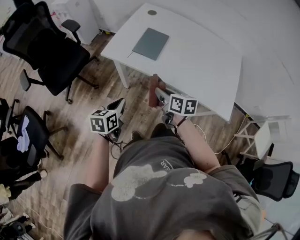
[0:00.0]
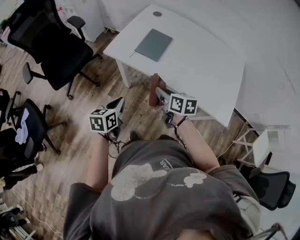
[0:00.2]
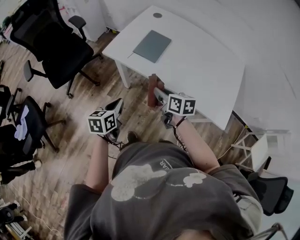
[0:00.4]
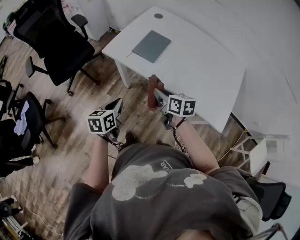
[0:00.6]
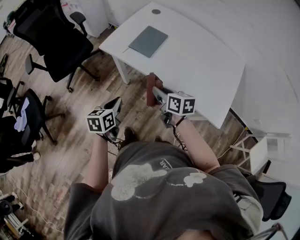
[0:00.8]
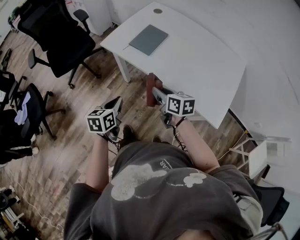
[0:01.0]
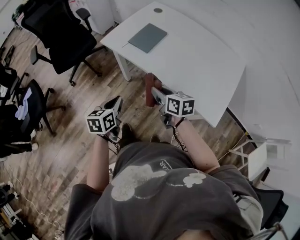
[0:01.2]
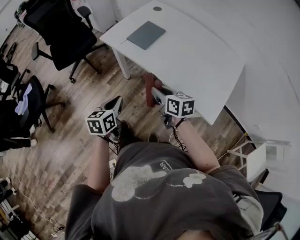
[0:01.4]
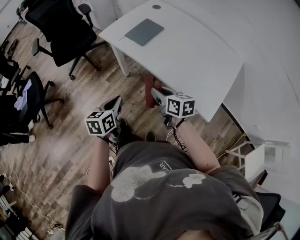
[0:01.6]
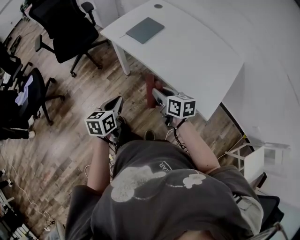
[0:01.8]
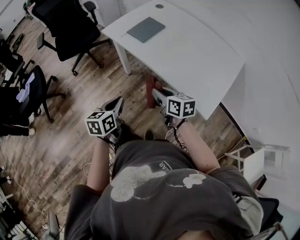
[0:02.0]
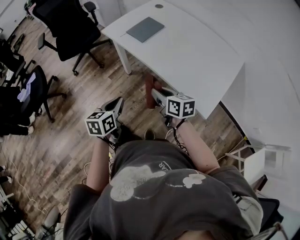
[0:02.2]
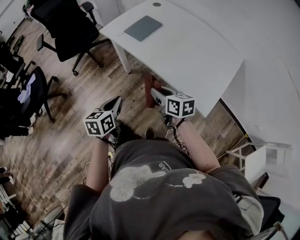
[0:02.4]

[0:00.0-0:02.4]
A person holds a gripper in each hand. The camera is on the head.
0:00.0 to 0:01.2: Both grippers travel together to the right and backward, some 10 cm.
0:01.2 to 0:02.4: The grippers both shift backward and to the right by approximately 15 cm.

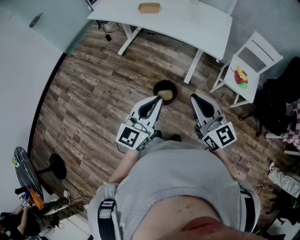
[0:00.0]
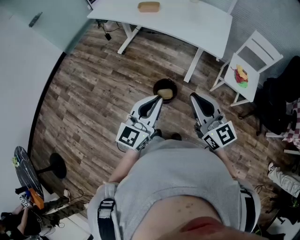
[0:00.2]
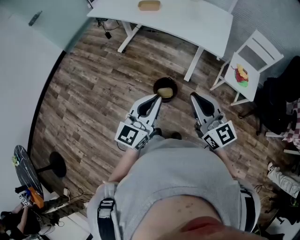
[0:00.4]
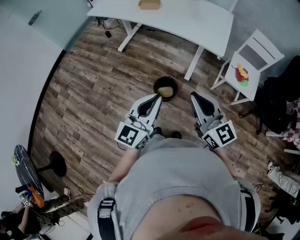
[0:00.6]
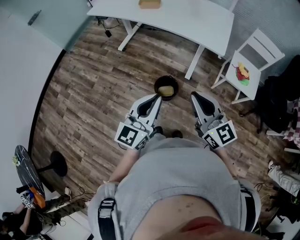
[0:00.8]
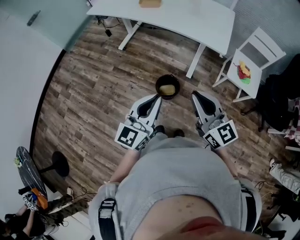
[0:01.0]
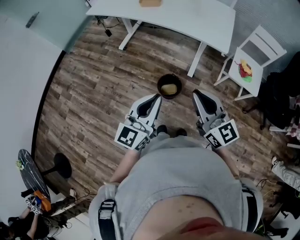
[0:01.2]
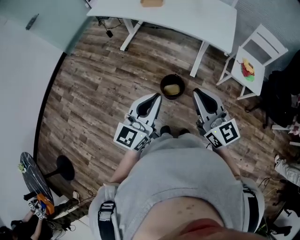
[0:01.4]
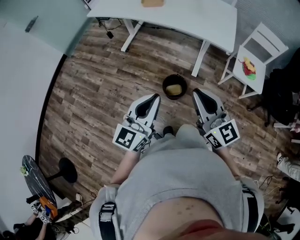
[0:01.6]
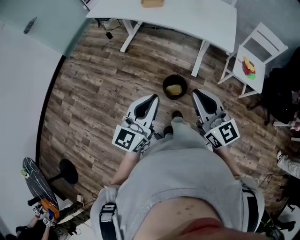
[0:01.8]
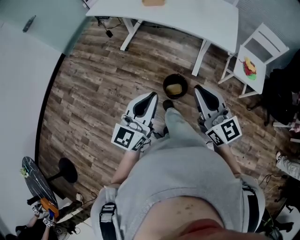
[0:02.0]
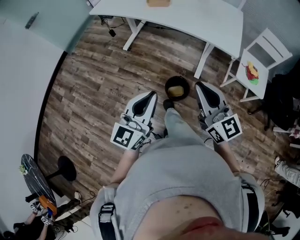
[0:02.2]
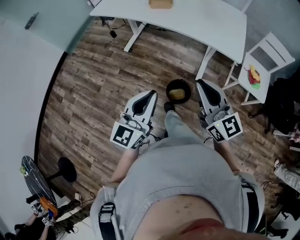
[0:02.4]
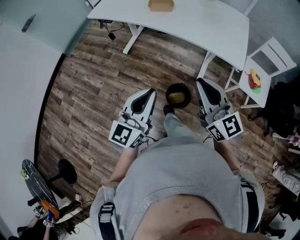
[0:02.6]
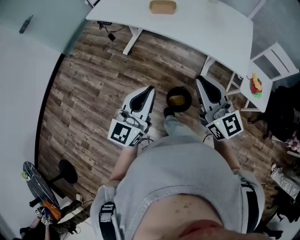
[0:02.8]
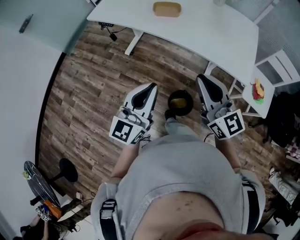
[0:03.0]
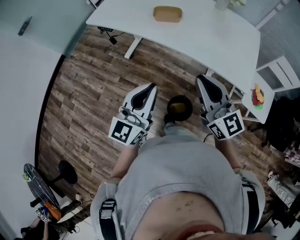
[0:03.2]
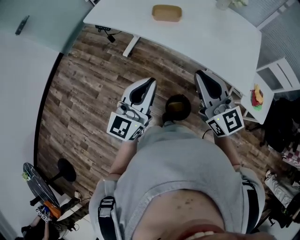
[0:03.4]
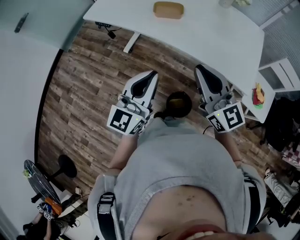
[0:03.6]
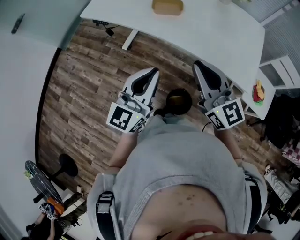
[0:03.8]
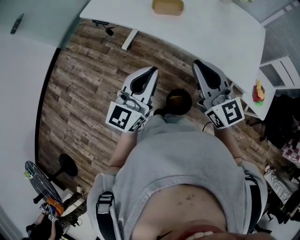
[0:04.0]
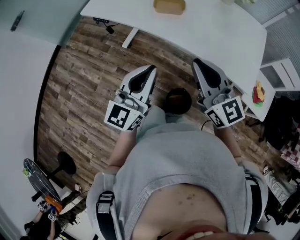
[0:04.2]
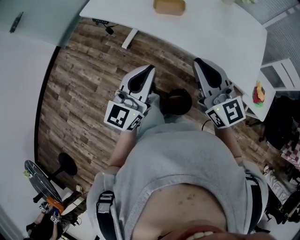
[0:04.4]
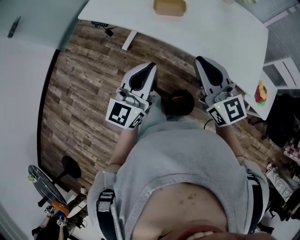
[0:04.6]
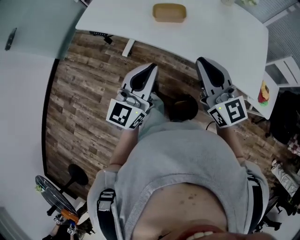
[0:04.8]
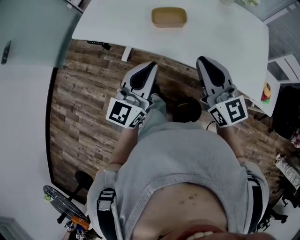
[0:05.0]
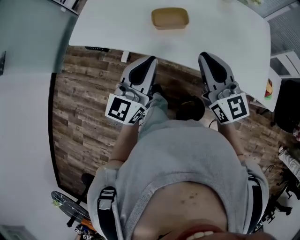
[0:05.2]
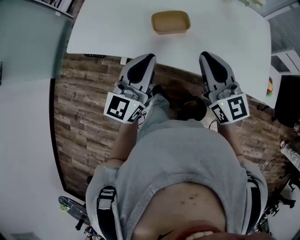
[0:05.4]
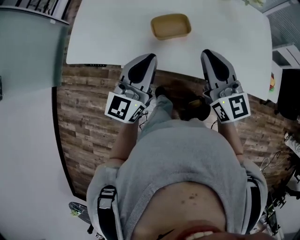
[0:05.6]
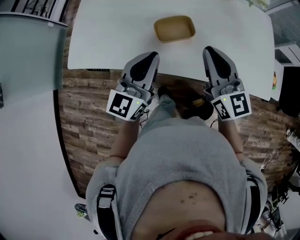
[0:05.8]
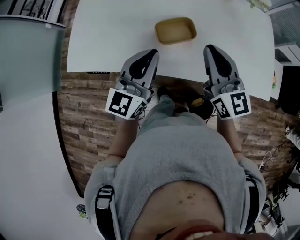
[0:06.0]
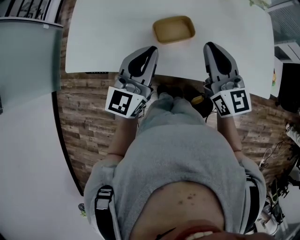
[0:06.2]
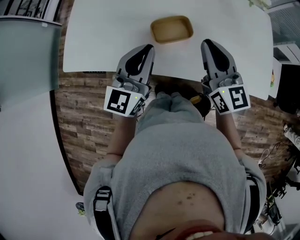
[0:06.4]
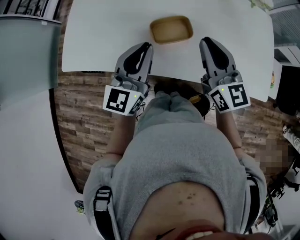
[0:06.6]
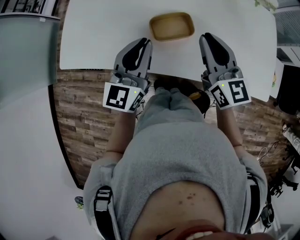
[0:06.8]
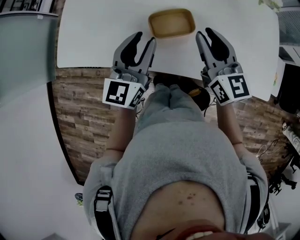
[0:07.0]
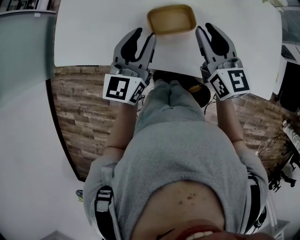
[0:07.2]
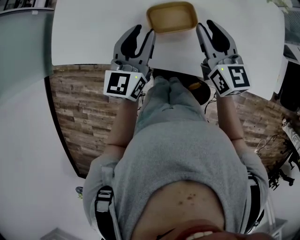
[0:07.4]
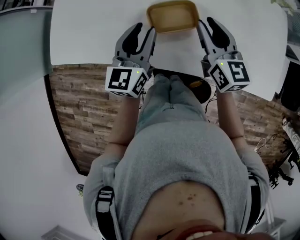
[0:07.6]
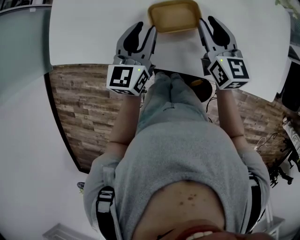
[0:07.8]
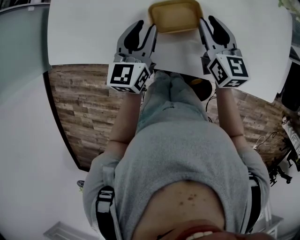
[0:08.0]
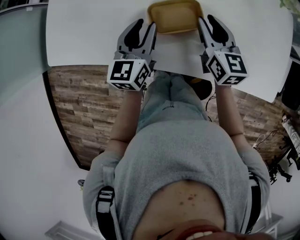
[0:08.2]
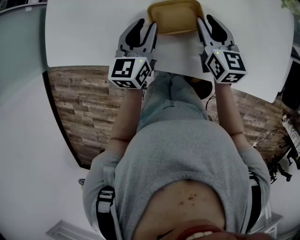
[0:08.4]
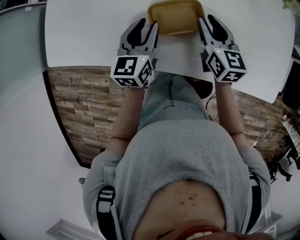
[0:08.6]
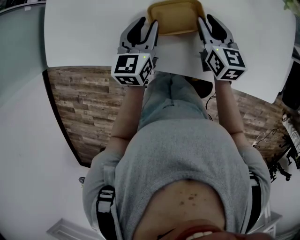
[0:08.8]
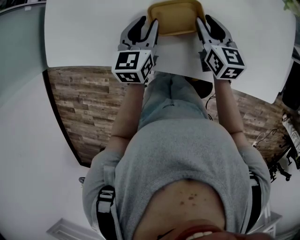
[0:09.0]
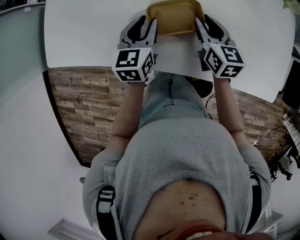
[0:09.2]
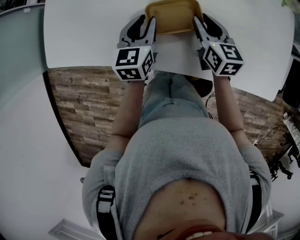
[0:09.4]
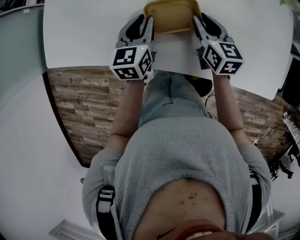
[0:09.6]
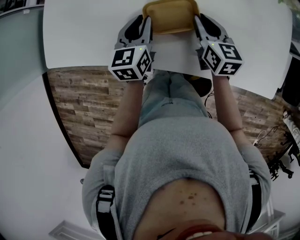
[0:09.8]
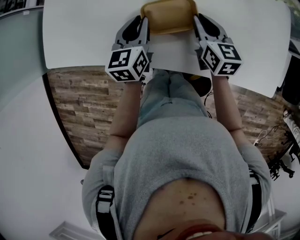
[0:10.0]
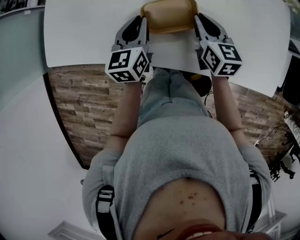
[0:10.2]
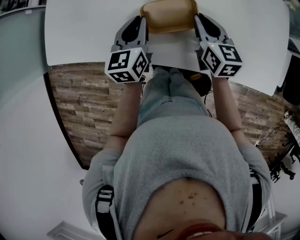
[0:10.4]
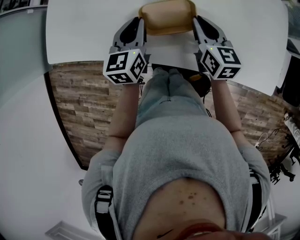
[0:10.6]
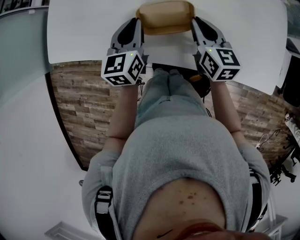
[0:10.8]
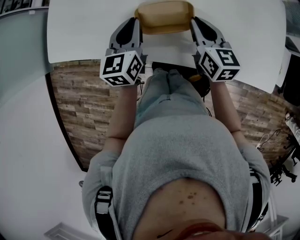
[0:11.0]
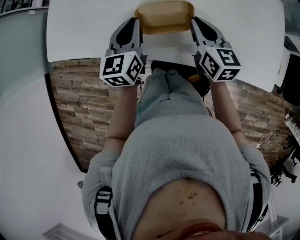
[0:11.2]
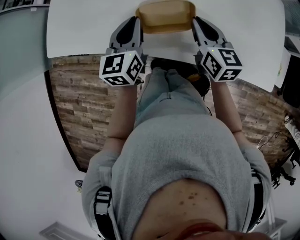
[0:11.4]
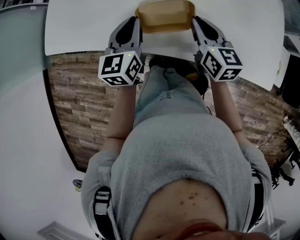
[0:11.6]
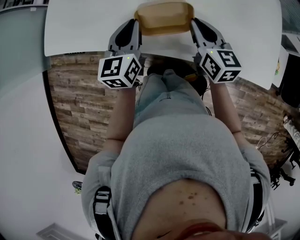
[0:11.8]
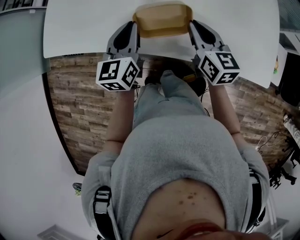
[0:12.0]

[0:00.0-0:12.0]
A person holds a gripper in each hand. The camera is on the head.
0:00.0 to 0:01.6: Both grippers travel together to the left, about 10 cm.
0:01.6 to 0:03.0: The two grippers go some 25 cm forward.
0:03.0 to 0:04.4: The grippers both shift forward by approximately 10 cm.
0:04.4 to 0:06.0: Both grippers travel together forward, about 30 cm. The right gripper turns by roughly 30 degrees. The left gripper swivels some 20 degrees.
0:06.0 to 0:07.6: The grippers both shift downward and forward by roughly 15 cm. The left gripper opens up. The right gripper opens.
0:07.6 to 0:09.0: The two grippers go roughly 10 cm downward.
0:09.0 to 0:10.4: The grippers move only a little.
0:10.4 to 0:12.0: Both grippers travel together backward, roughly 5 cm.

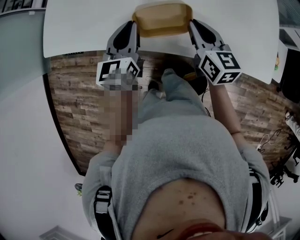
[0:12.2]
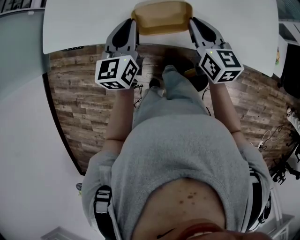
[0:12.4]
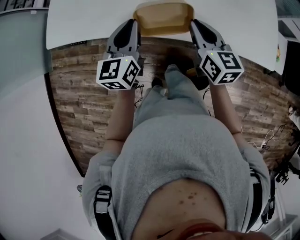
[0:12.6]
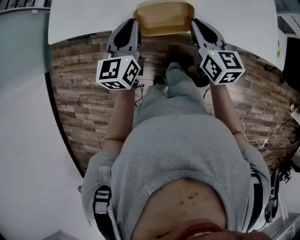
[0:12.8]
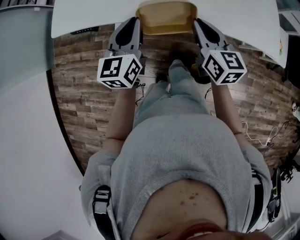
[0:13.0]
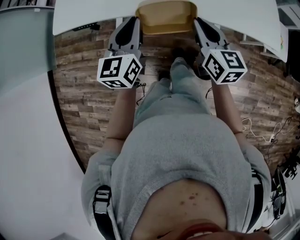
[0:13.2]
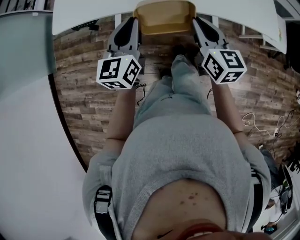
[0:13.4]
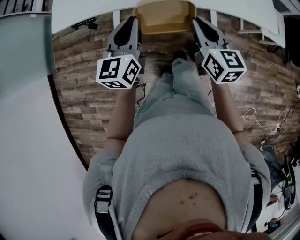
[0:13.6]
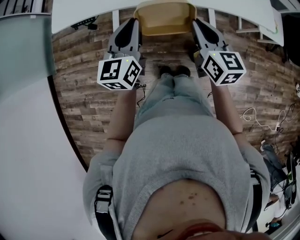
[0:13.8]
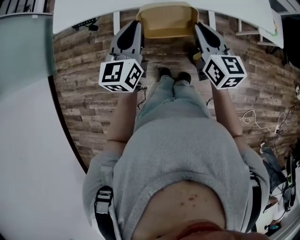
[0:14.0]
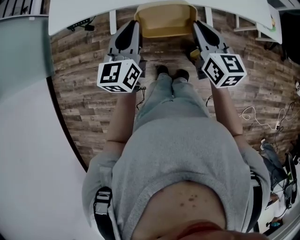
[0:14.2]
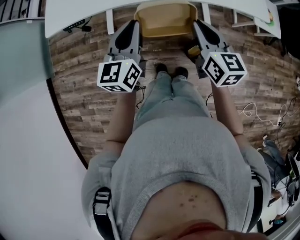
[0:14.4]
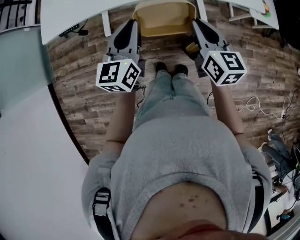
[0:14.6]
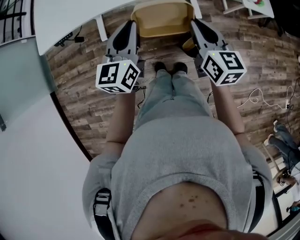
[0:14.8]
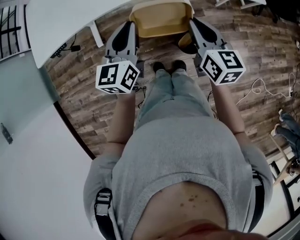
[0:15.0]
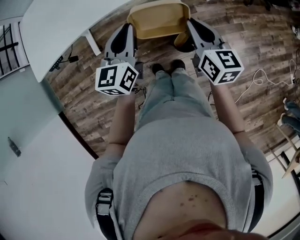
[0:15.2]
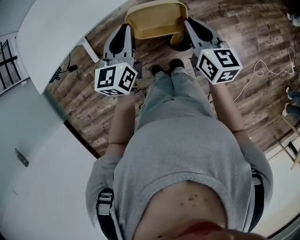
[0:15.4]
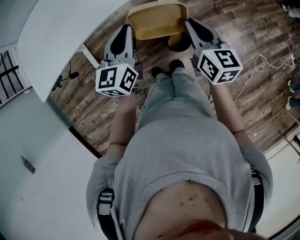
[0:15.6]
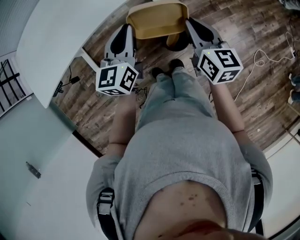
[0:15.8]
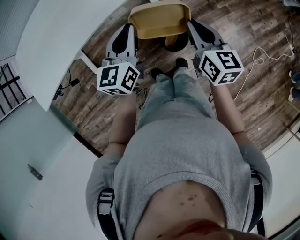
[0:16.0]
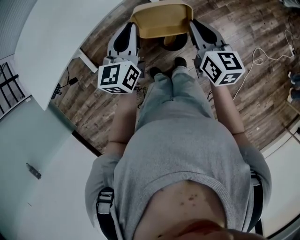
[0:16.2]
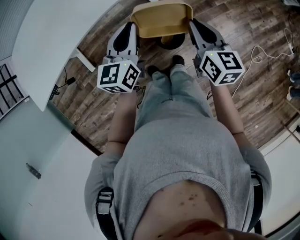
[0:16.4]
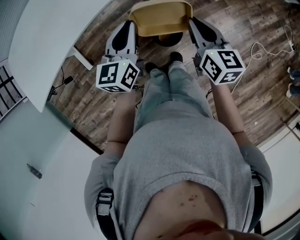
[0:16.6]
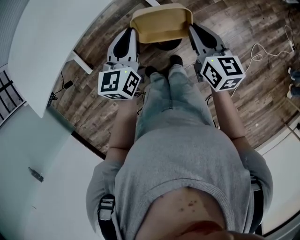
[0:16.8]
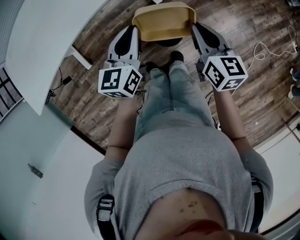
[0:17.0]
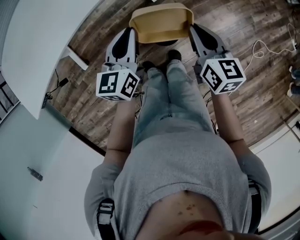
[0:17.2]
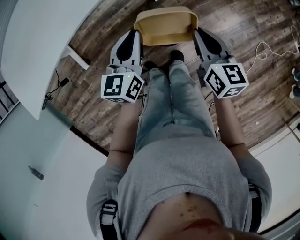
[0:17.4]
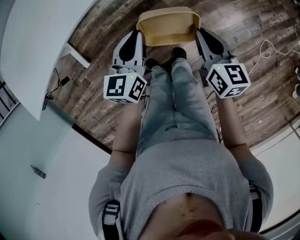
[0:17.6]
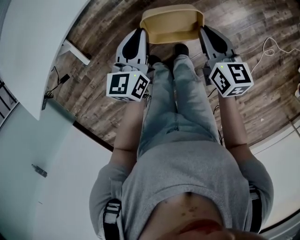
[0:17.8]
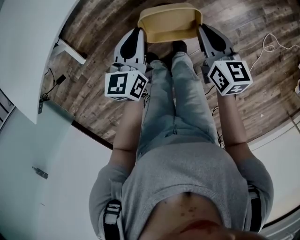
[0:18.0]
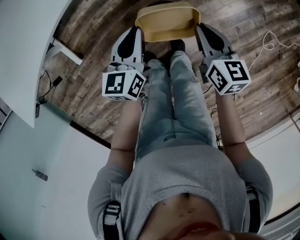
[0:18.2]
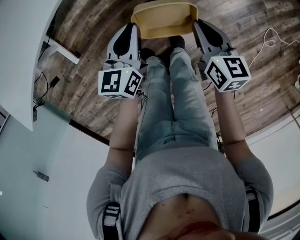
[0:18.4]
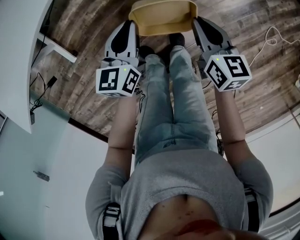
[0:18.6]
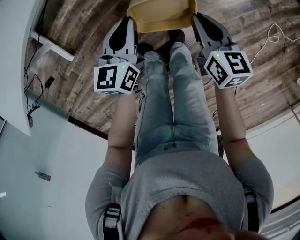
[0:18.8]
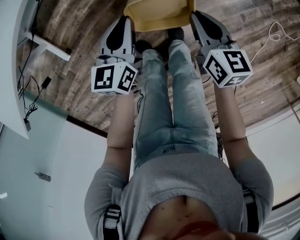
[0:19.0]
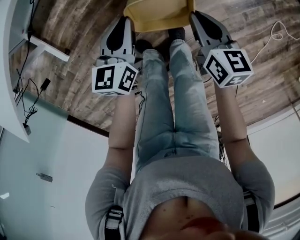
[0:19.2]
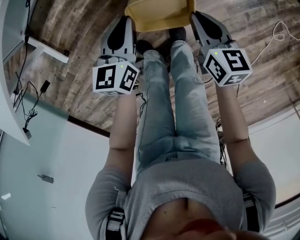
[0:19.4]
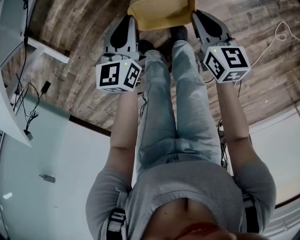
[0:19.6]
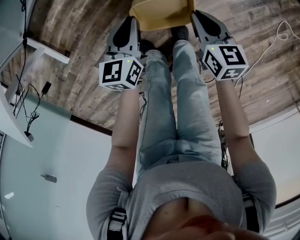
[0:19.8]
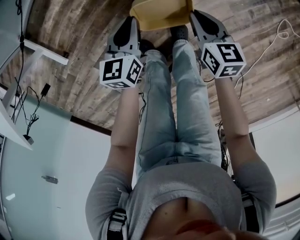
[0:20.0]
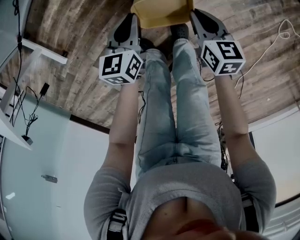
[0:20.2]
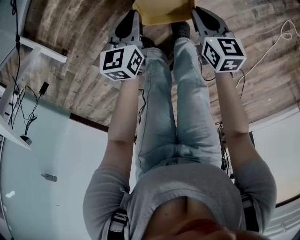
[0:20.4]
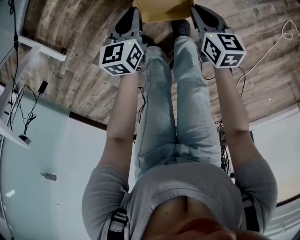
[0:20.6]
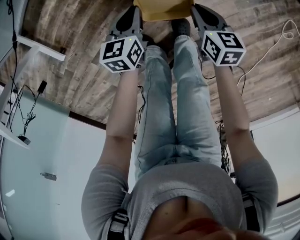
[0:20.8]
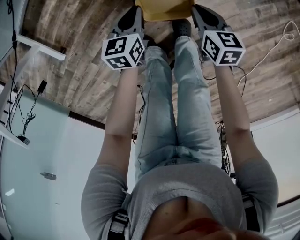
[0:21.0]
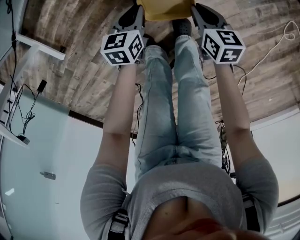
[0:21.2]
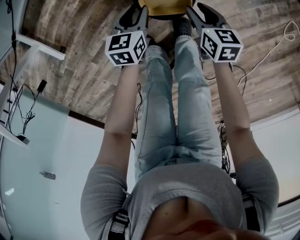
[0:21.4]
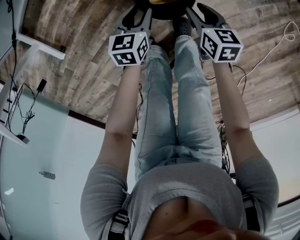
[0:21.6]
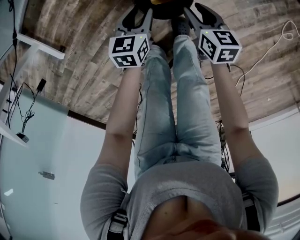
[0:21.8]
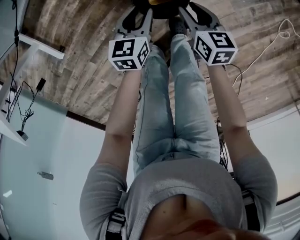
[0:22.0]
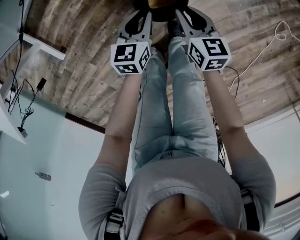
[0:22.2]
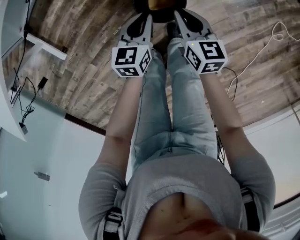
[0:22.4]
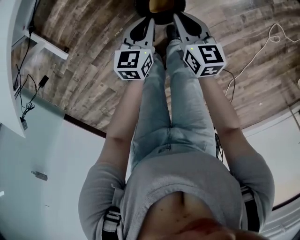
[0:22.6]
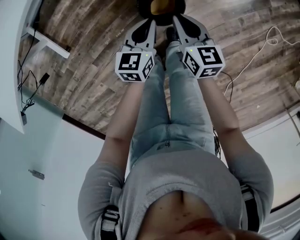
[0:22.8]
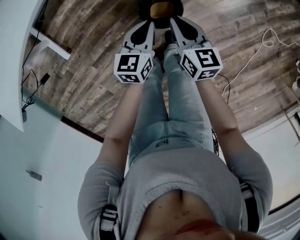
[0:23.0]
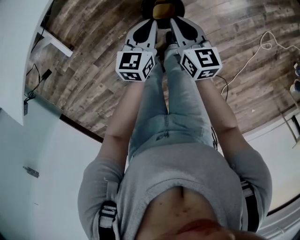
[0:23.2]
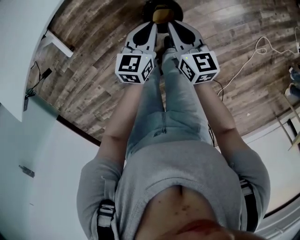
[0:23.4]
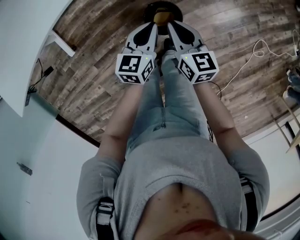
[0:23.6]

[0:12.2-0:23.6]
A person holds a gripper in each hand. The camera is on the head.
0:12.2 to 0:13.6: The right gripper travels backward by roughly 20 cm. The left gripper heads backward and to the left, covering approximately 20 cm.
0:13.6 to 0:15.0: The left gripper travels to the right by approximately 15 cm; the right gripper shifts roughly 15 cm to the right and backward.
0:15.0 to 0:16.4: The grippers both shift to the right by about 15 cm.
0:16.4 to 0:17.8: The two grippers go approximately 15 cm downward.
0:17.8 to 0:19.4: The two grippers go roughly 20 cm downward.
0:19.4 to 0:20.8: The grippers both shift downward by approximately 15 cm.
0:20.8 to 0:22.2: The right gripper is displaced upward by about 5 cm. Meanwhile the left gripper ends up about 5 cm from where it was.
0:22.2 to 0:23.6: Both grippers travel together upward, roughly 20 cm.
